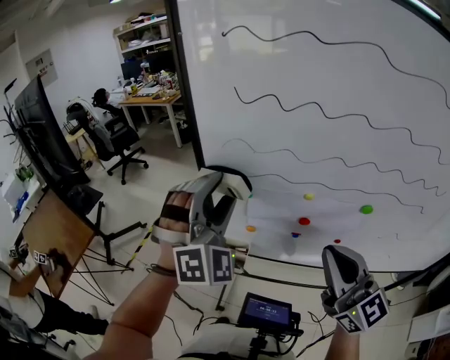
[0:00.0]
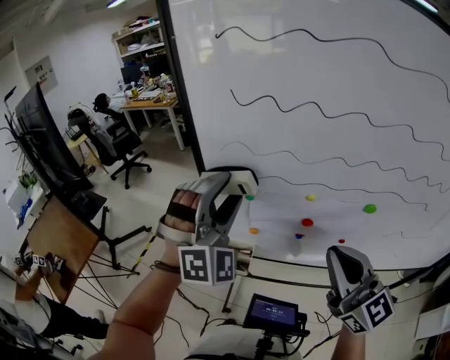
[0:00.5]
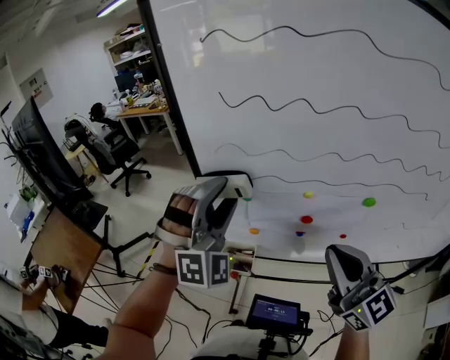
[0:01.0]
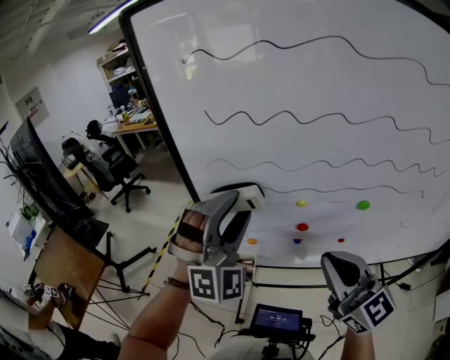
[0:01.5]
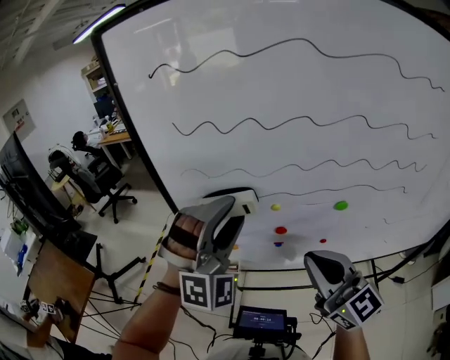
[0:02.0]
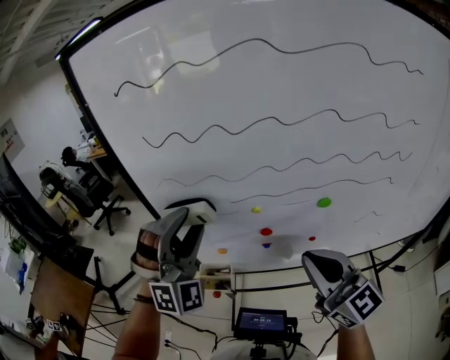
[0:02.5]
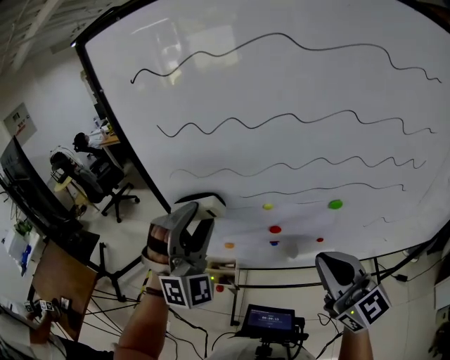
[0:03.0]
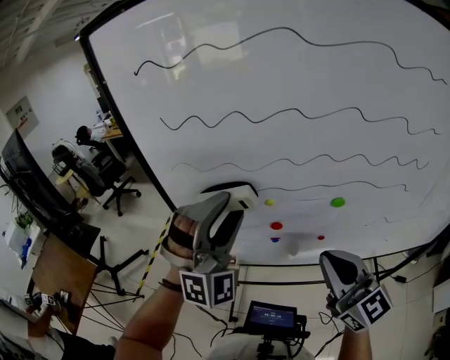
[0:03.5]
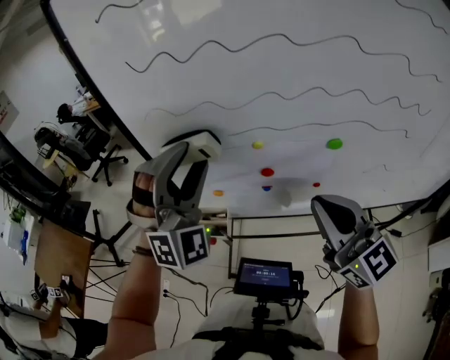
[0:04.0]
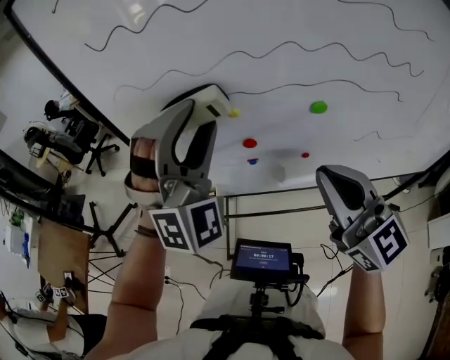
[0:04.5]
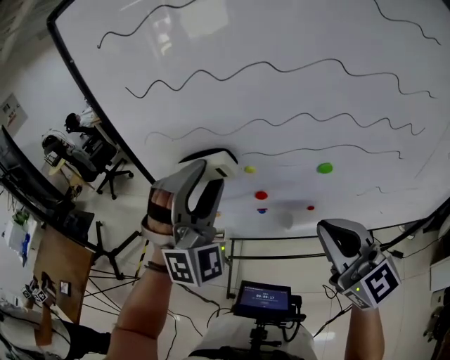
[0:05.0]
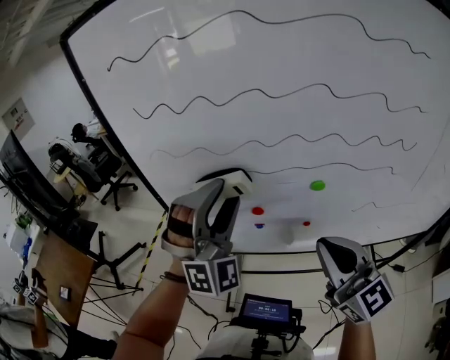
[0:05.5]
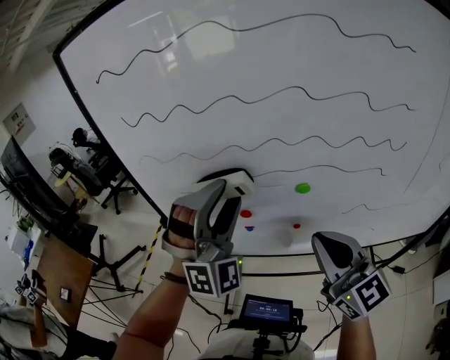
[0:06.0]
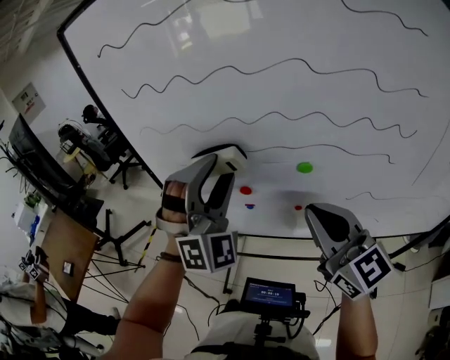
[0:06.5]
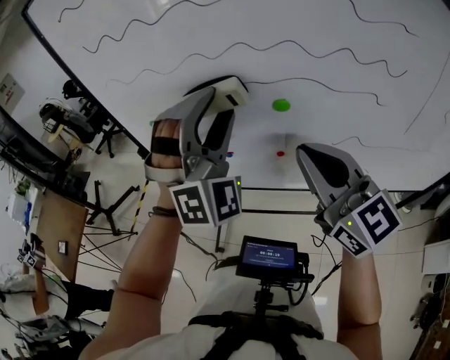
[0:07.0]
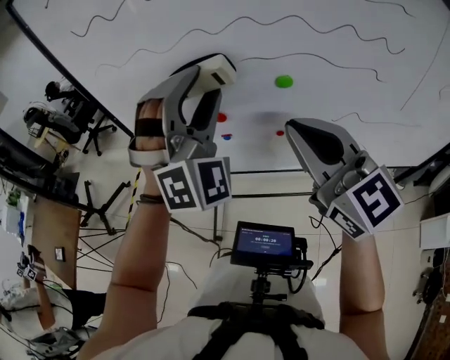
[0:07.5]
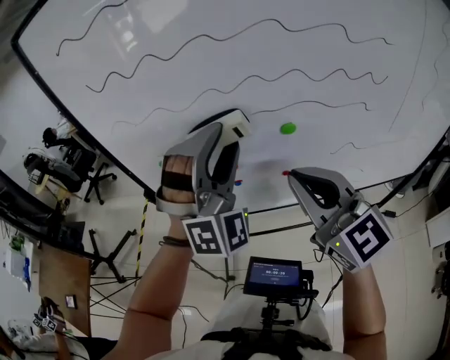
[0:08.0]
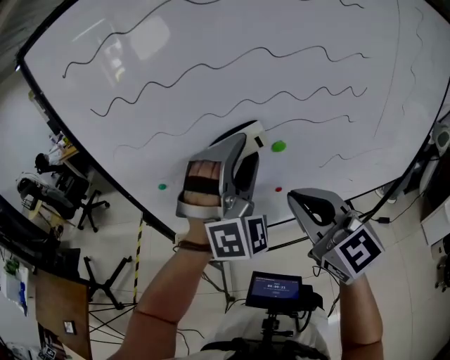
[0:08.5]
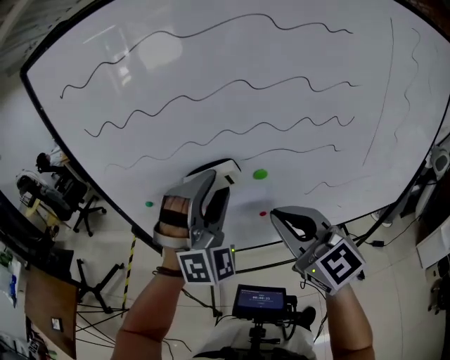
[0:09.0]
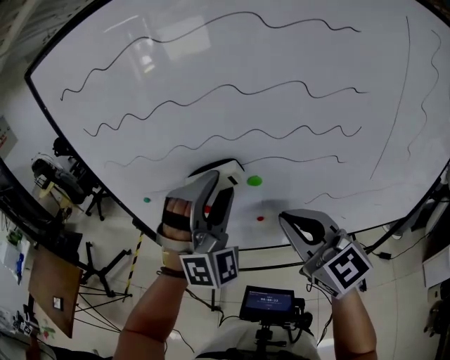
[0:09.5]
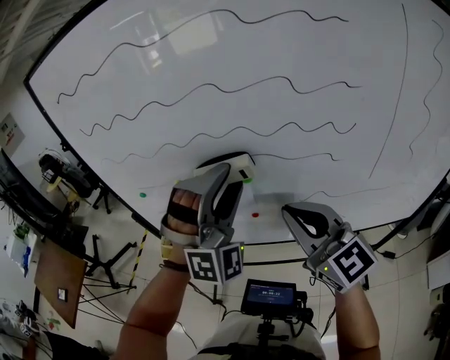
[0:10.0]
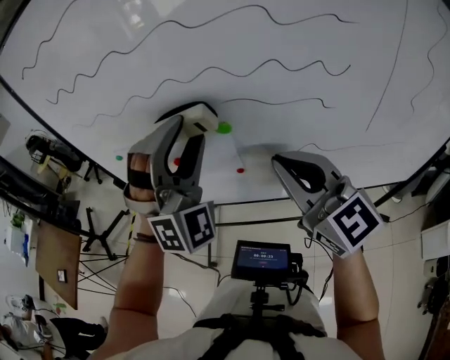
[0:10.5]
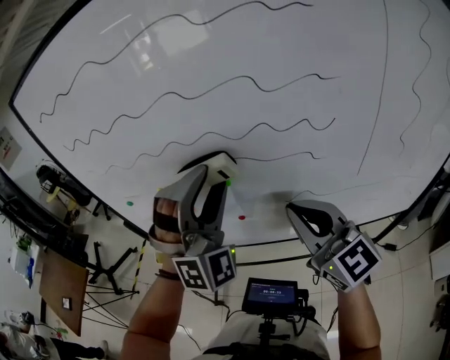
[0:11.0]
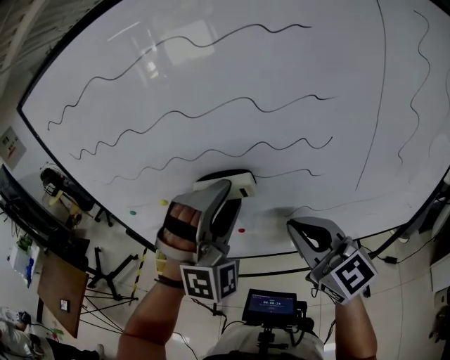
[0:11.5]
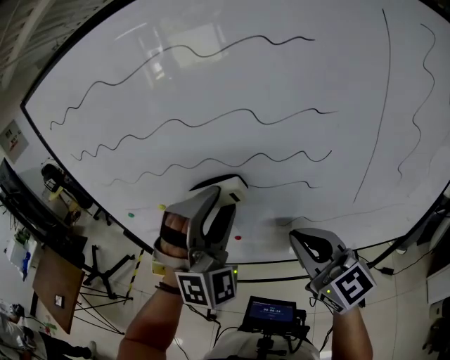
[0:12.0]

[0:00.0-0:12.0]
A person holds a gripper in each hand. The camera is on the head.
0:00.0 to 0:02.0: The left gripper shifts about 10 cm to the right, and rotates some 20 degrees.
0:02.0 to 0:04.0: The left gripper moves left and right over approximately 5 cm, changing direction 2 times.
0:04.0 to 0:06.0: The left gripper goes some 10 cm to the right, while the right gripper is displaced to the right by roughly 10 cm.
0:06.0 to 0:08.0: The right gripper moves about 5 cm.
0:08.0 to 0:10.0: The grippers both shift to the right by about 10 cm.
0:10.0 to 0:12.0: The left gripper changes place by approximately 5 cm. The right gripper heads to the right, covering about 10 cm.

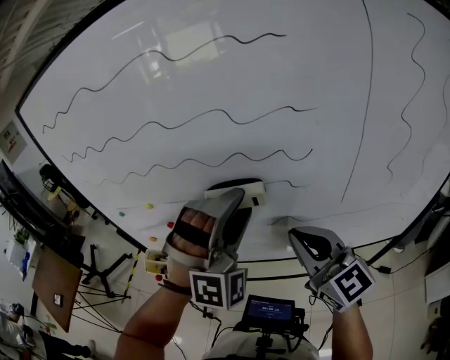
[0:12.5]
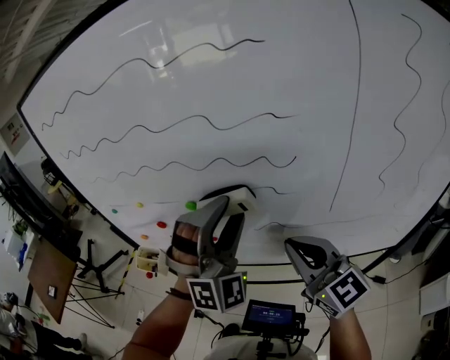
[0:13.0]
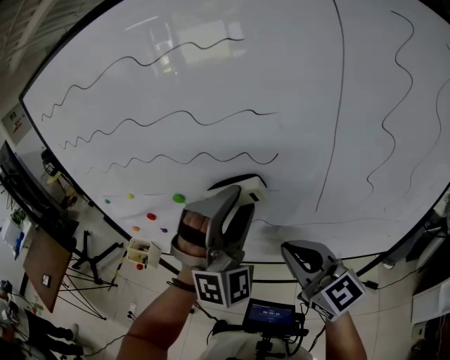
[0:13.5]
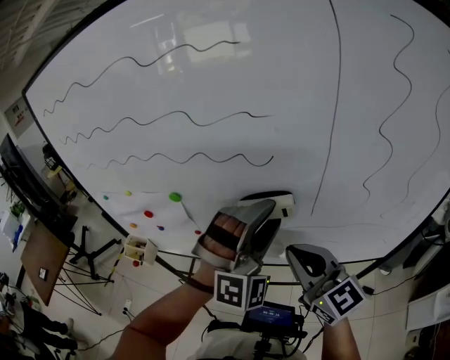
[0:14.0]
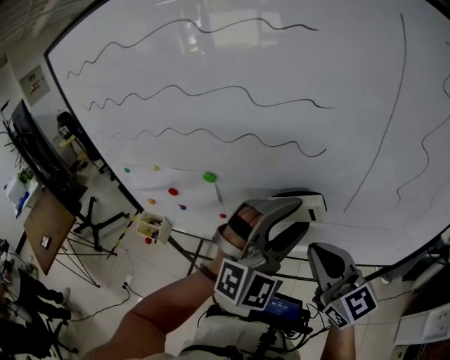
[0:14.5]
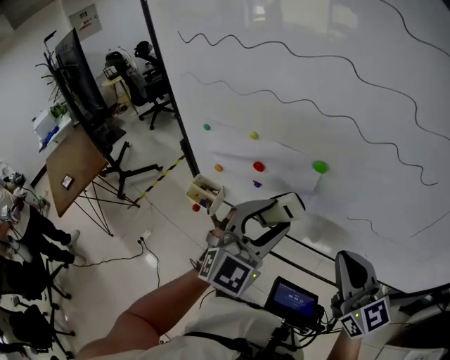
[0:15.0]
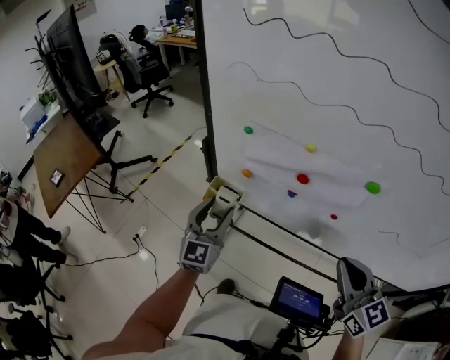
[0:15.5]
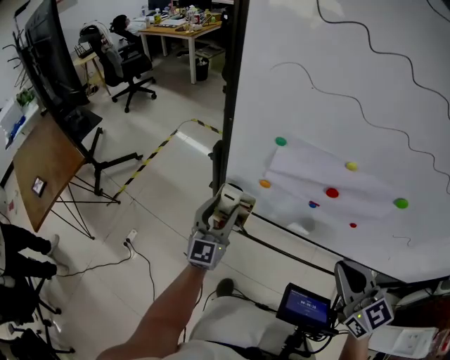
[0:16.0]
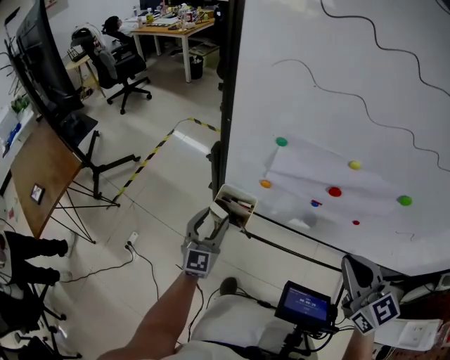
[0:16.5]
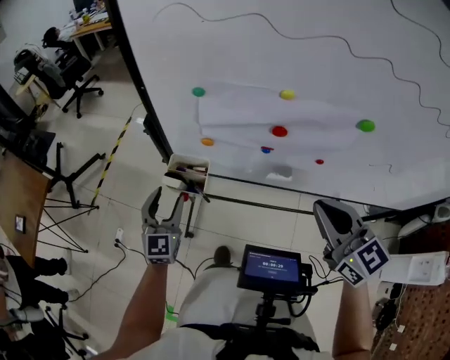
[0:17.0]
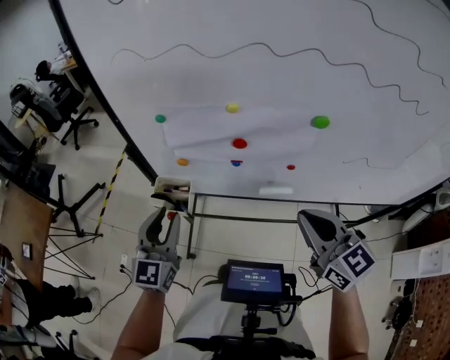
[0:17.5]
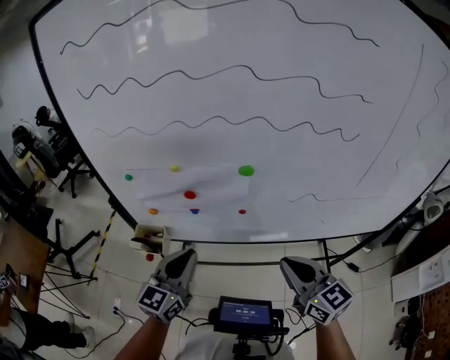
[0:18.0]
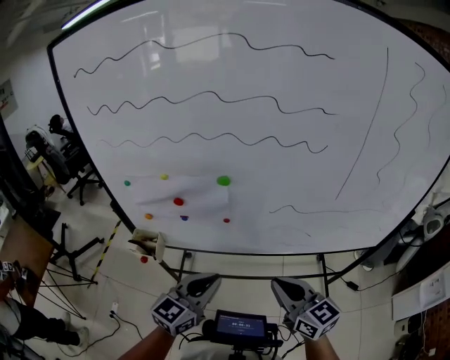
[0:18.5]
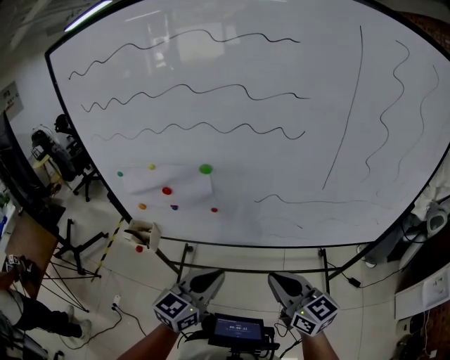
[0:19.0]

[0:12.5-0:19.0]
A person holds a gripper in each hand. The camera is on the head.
0:12.5 to 0:14.5: The right gripper shifts about 5 cm to the right; the left gripper is displaced to the right and backward by roughly 10 cm, and turns by approximately 30 degrees.
0:14.5 to 0:17.0: The right gripper travels to the left by approximately 30 cm, while the left gripper travels to the left and downward by about 70 cm, and twists roughly 50 degrees counterclockwise, seen from behind.
0:17.0 to 0:19.0: The right gripper moves to the right and backward, roughly 25 cm. The left gripper is displaced to the right and backward by roughly 50 cm, swivels about 40 degrees, and closes.

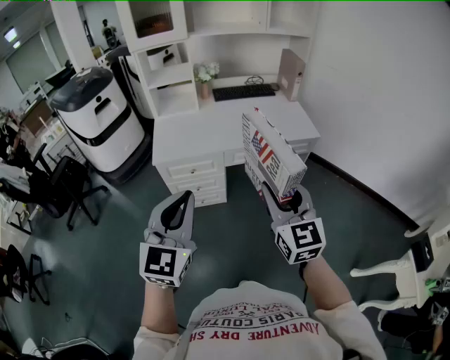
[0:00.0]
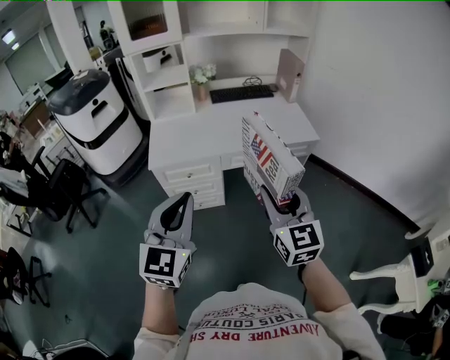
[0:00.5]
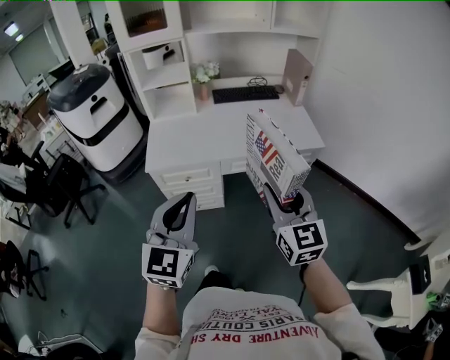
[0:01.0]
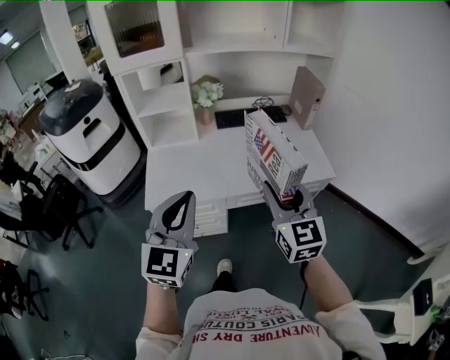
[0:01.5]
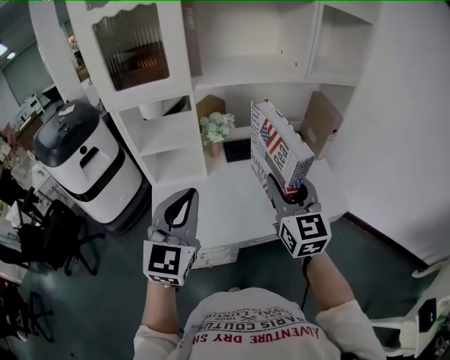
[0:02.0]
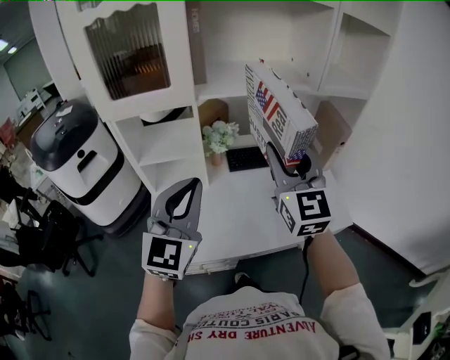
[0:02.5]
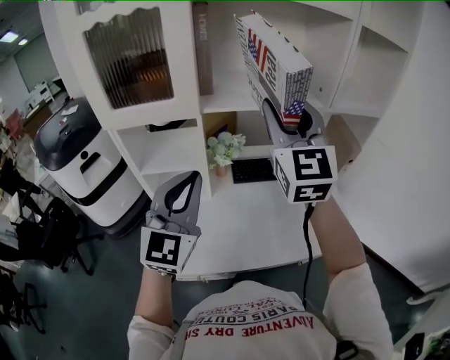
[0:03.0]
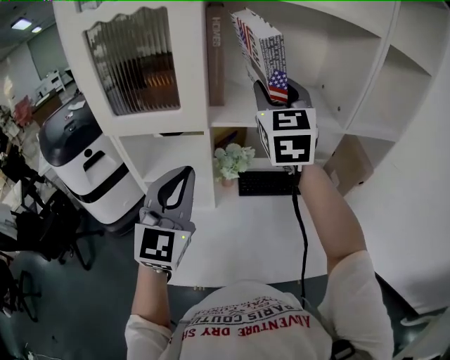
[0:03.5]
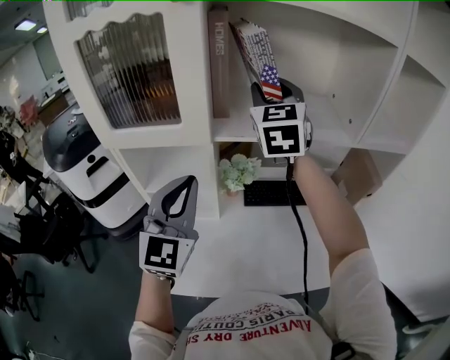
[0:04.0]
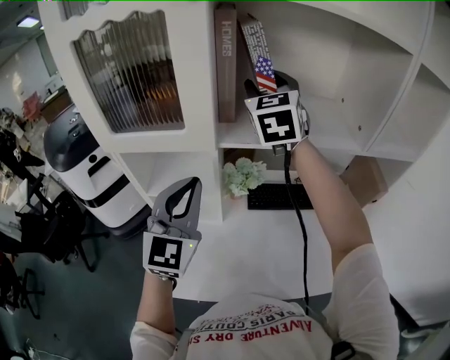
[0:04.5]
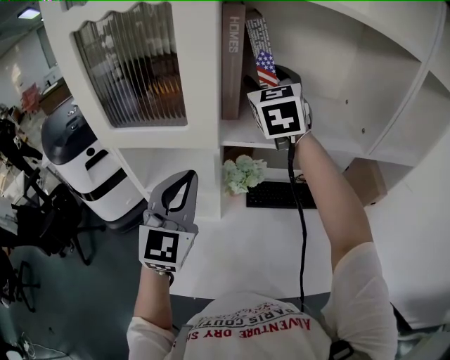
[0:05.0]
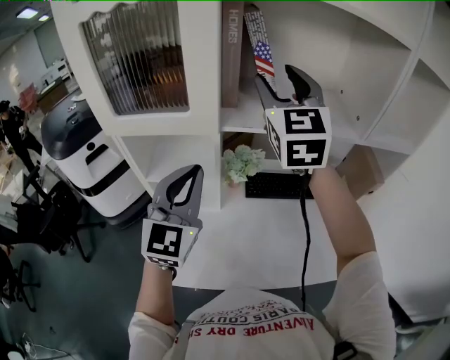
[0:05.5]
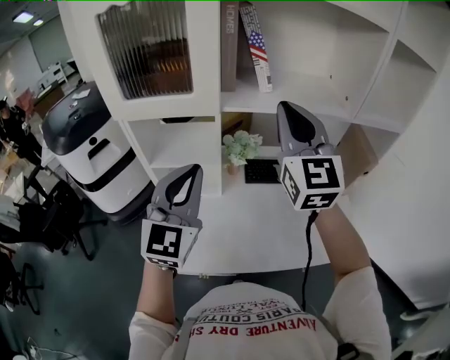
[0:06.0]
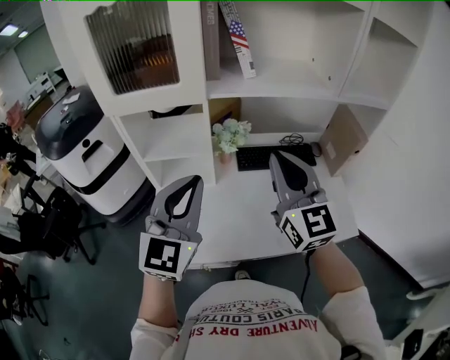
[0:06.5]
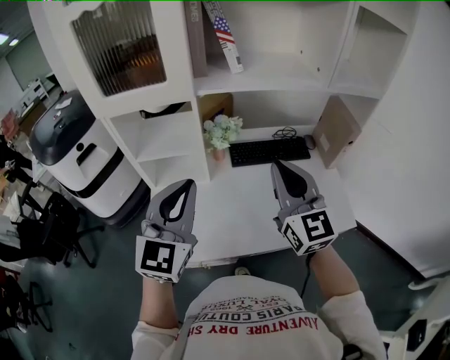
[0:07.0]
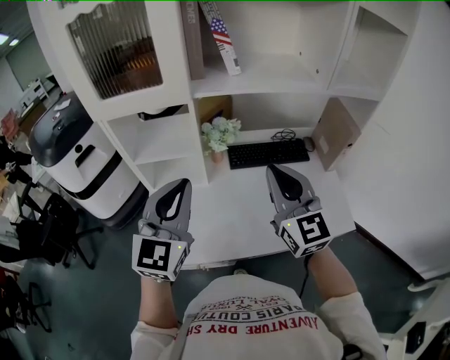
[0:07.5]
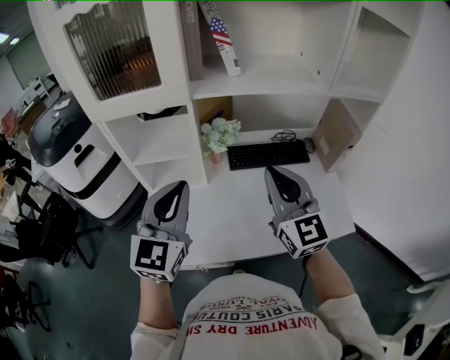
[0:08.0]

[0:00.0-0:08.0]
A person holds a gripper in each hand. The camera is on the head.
0:00.0 to 0:02.0: The two grippers travel together, forward, roughly 50 cm.
0:02.0 to 0:04.0: The left gripper goes approximately 25 cm forward; the right gripper shifts about 40 cm forward and upward.
0:04.0 to 0:06.0: The right gripper goes approximately 15 cm backward, and closes its fingers. Meanwhile the left gripper shifts approximately 5 cm backward.
0:06.0 to 0:08.0: The right gripper goes some 20 cm downward and backward; the left gripper ends up approximately 5 cm from where it was.
